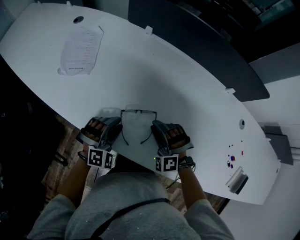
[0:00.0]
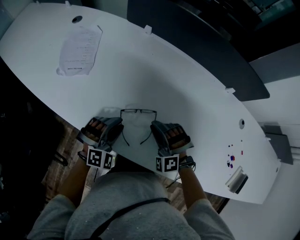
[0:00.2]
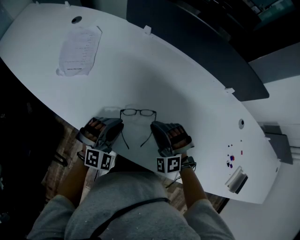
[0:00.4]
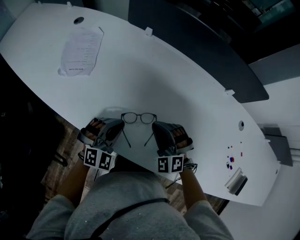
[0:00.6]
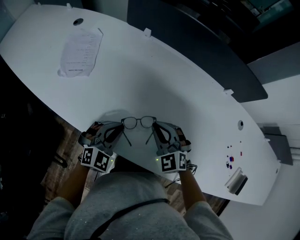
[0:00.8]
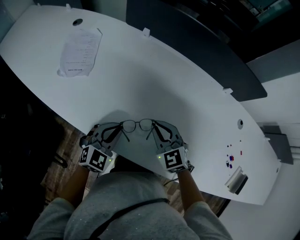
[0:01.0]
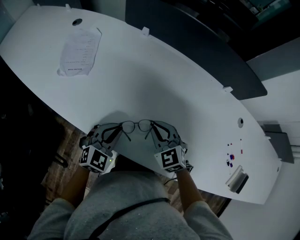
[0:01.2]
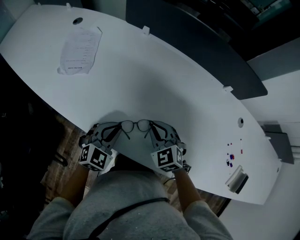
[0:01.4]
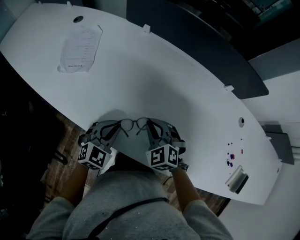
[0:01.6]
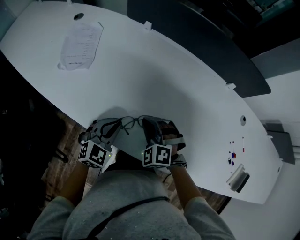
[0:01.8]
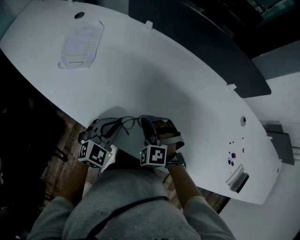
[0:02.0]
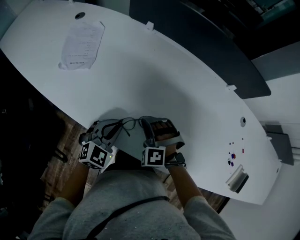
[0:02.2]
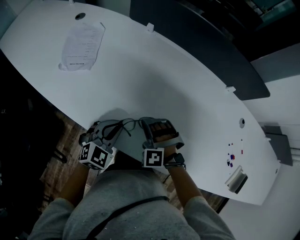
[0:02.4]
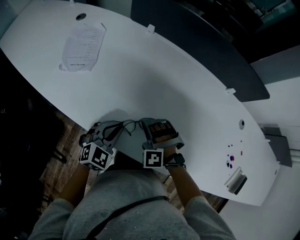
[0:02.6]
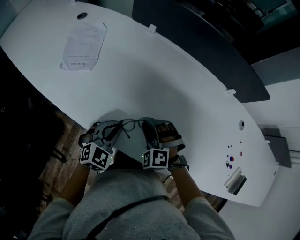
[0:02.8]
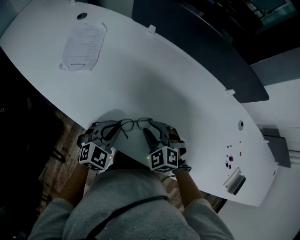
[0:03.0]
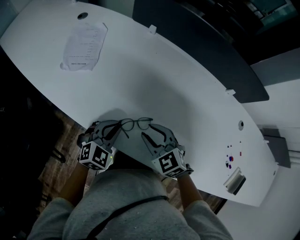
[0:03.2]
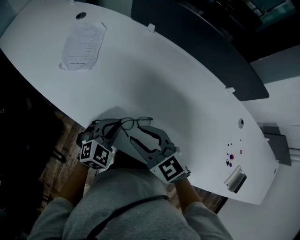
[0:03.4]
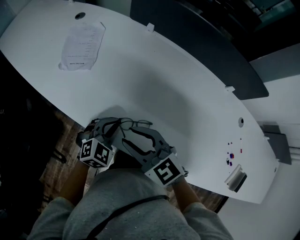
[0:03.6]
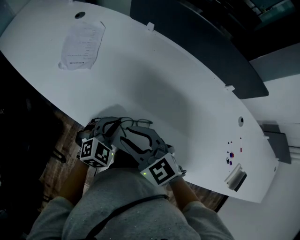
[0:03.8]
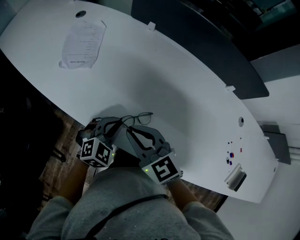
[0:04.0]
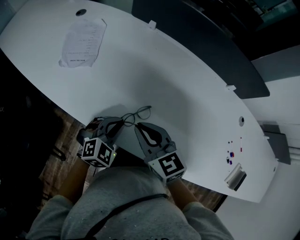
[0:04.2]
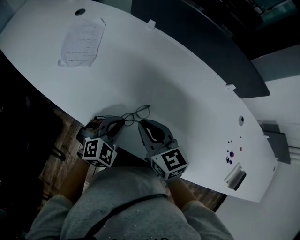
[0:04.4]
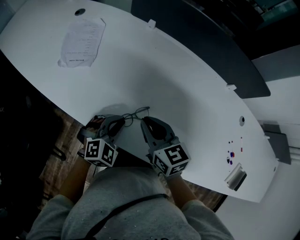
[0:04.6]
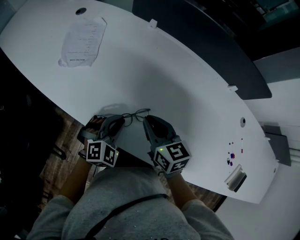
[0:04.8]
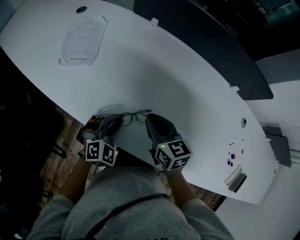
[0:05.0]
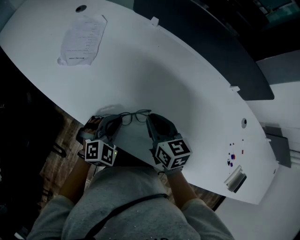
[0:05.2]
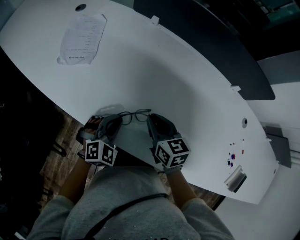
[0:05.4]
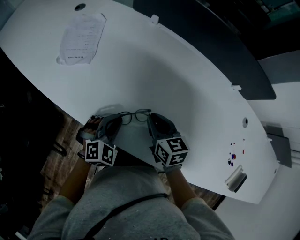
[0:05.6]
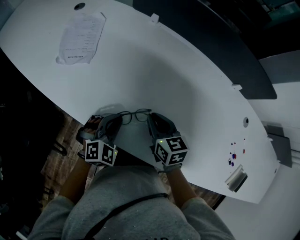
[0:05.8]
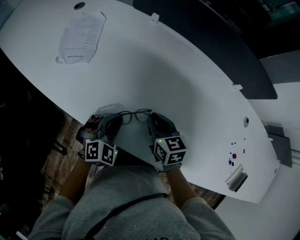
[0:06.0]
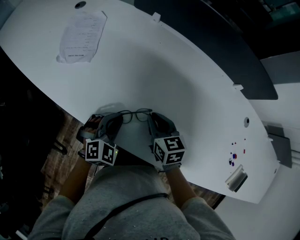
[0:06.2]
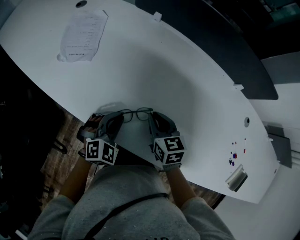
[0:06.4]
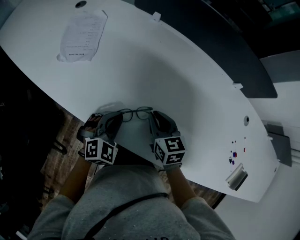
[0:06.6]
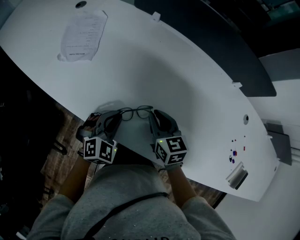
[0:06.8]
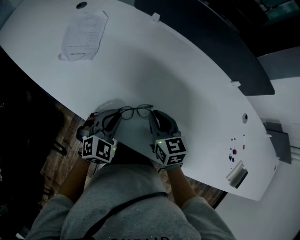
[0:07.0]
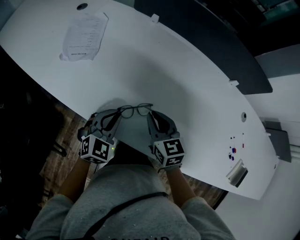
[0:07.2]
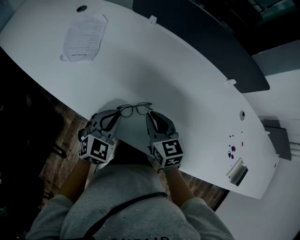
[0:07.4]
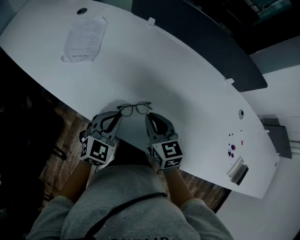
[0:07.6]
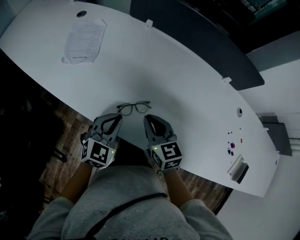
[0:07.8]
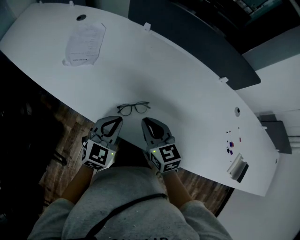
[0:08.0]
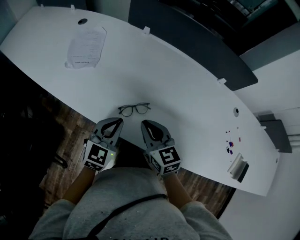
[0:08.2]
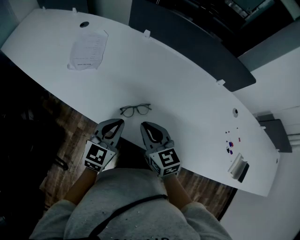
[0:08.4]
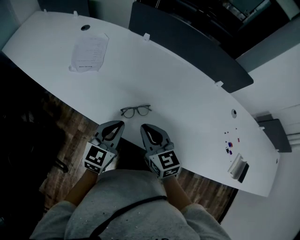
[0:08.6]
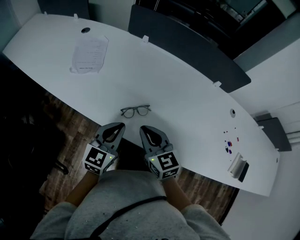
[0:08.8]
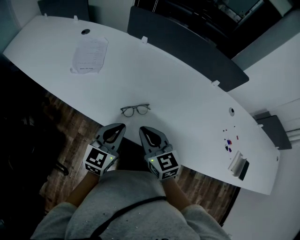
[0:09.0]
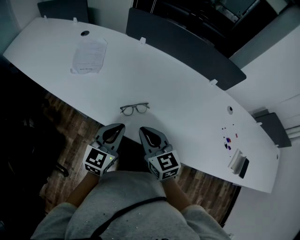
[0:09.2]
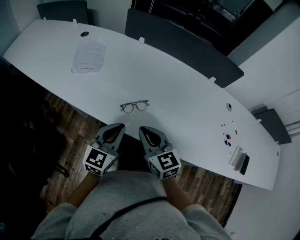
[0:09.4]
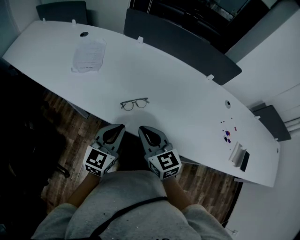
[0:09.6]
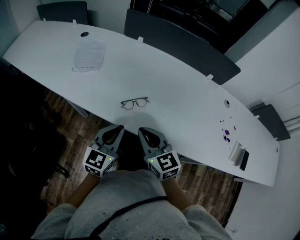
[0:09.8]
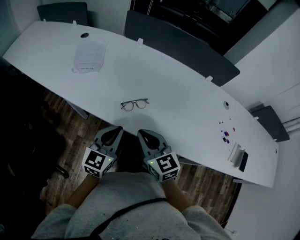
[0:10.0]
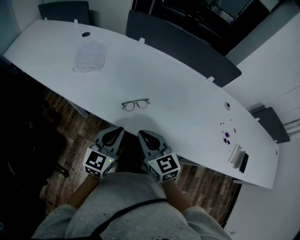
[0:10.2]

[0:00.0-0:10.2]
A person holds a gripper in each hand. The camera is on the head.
0:00.0 to 0:01.4: The left gripper changes its angle by roughly 40 degrees, and closes. Meanwhile the right gripper rotates around the line of its fingers by roughly 50 degrees, clockwise from behind, and closes up.
0:01.4 to 0:03.0: The right gripper opens up.
0:03.0 to 0:04.4: The right gripper shifts roughly 10 cm upward, rolls clockwise, seen from behind, by some 40 degrees, and closes.
0:04.4 to 0:05.8: The right gripper goes roughly 10 cm downward.
0:05.8 to 0:07.2: The grippers stay close to where they were, moving slightly.
0:07.2 to 0:08.8: The right gripper heads backward and upward, covering roughly 15 cm. The left gripper travels upward and backward by approximately 15 cm, and turns by roughly 30 degrees.
0:08.8 to 0:10.2: The two grippers go about 10 cm backward.

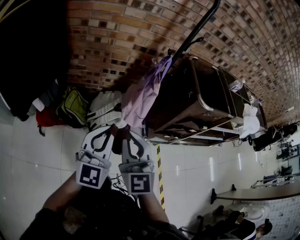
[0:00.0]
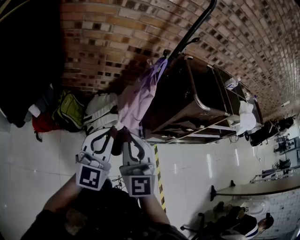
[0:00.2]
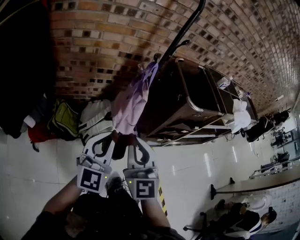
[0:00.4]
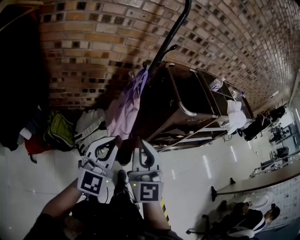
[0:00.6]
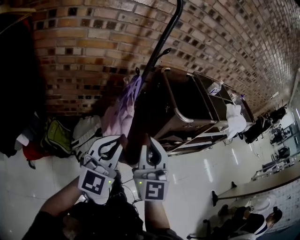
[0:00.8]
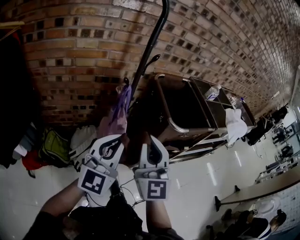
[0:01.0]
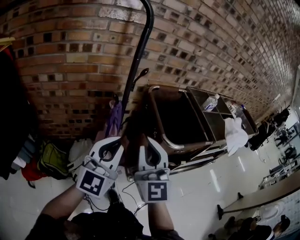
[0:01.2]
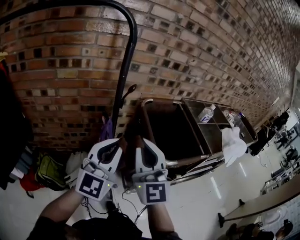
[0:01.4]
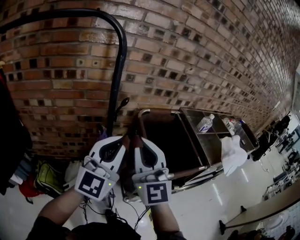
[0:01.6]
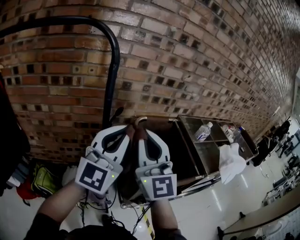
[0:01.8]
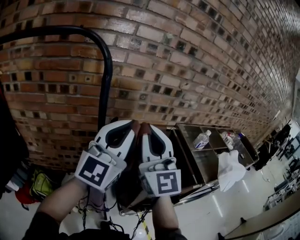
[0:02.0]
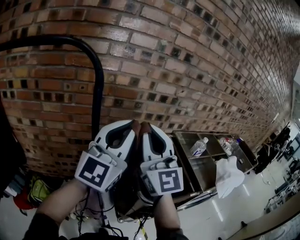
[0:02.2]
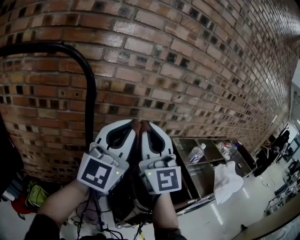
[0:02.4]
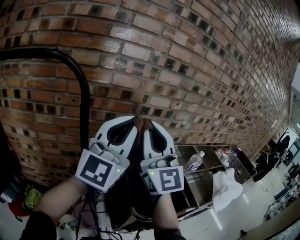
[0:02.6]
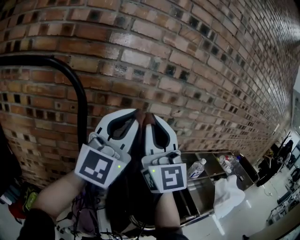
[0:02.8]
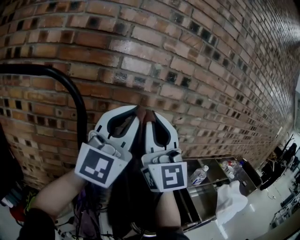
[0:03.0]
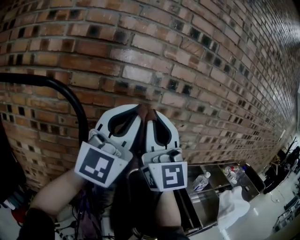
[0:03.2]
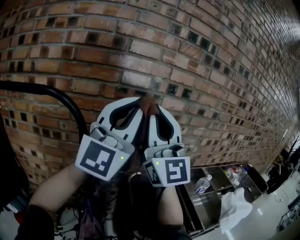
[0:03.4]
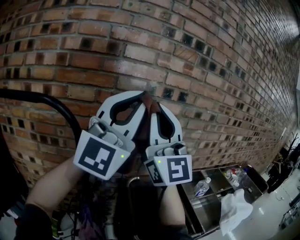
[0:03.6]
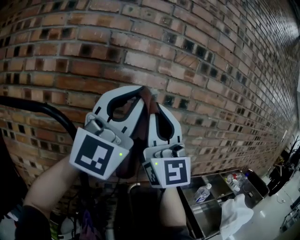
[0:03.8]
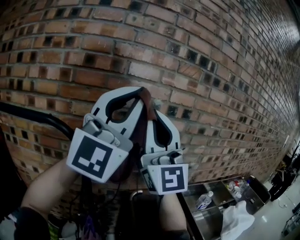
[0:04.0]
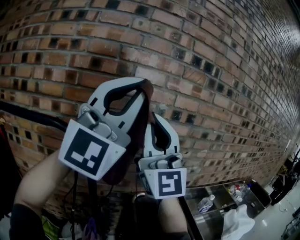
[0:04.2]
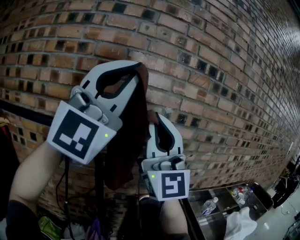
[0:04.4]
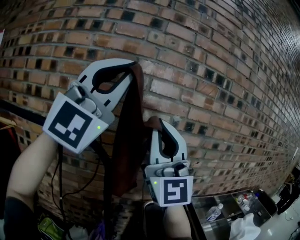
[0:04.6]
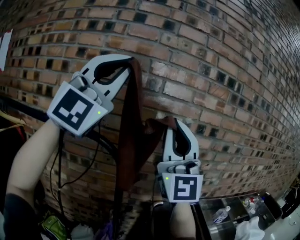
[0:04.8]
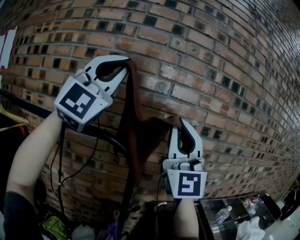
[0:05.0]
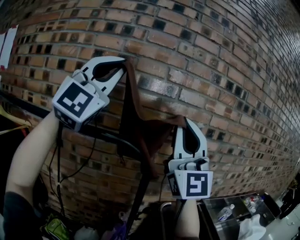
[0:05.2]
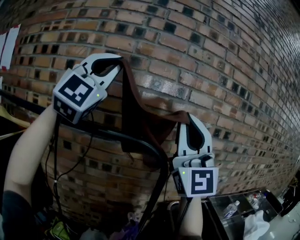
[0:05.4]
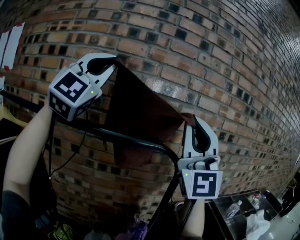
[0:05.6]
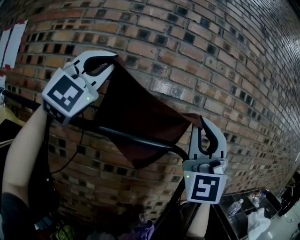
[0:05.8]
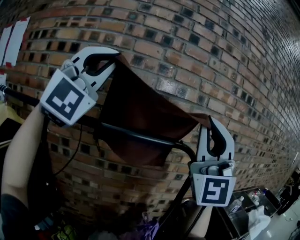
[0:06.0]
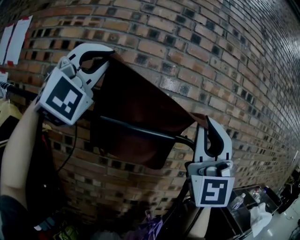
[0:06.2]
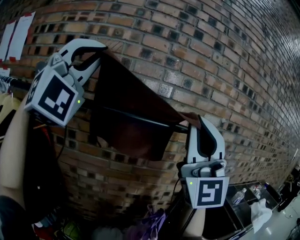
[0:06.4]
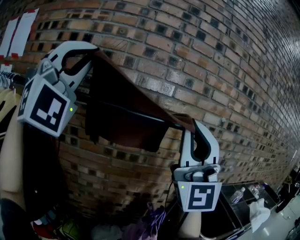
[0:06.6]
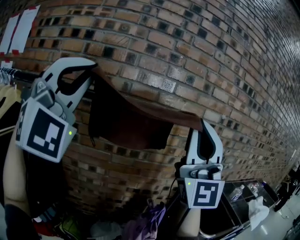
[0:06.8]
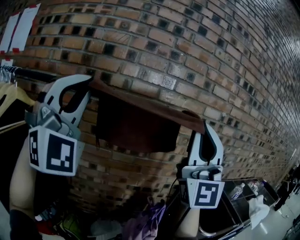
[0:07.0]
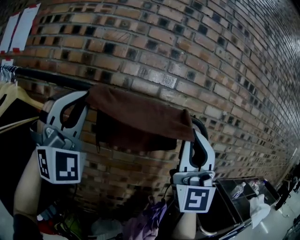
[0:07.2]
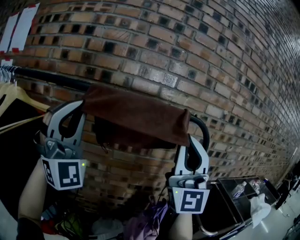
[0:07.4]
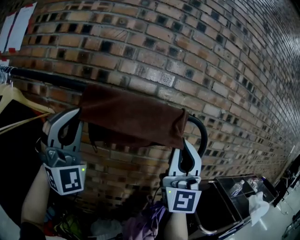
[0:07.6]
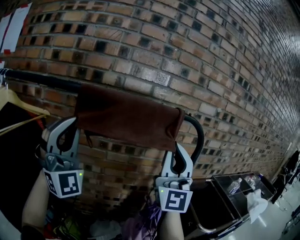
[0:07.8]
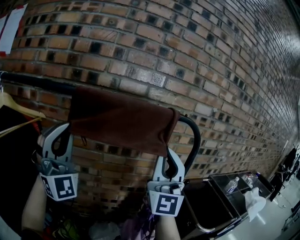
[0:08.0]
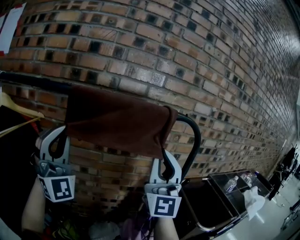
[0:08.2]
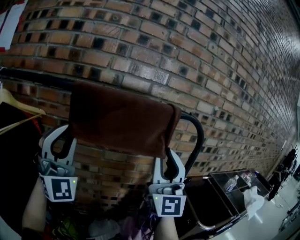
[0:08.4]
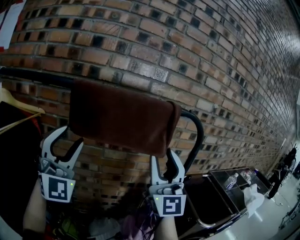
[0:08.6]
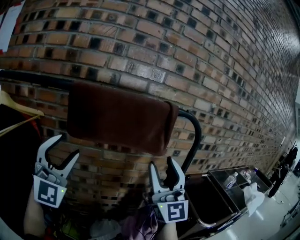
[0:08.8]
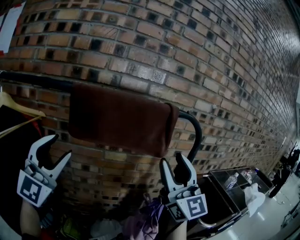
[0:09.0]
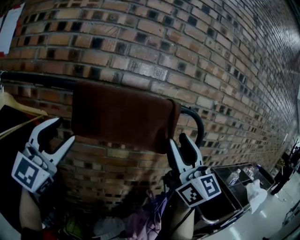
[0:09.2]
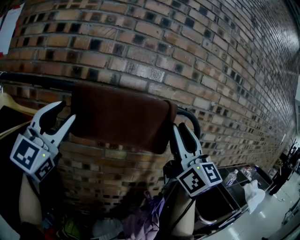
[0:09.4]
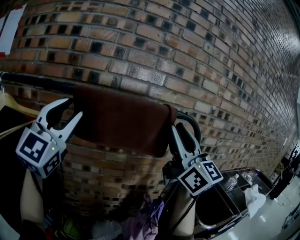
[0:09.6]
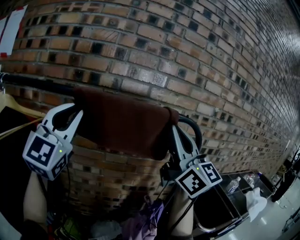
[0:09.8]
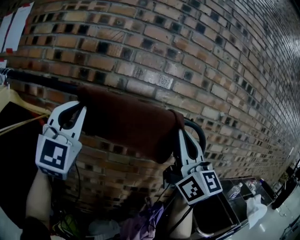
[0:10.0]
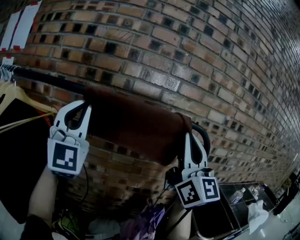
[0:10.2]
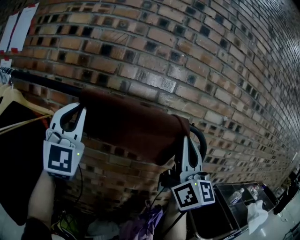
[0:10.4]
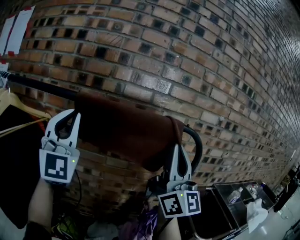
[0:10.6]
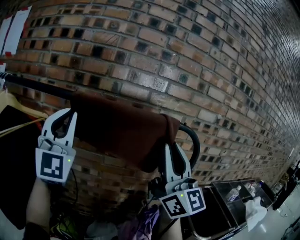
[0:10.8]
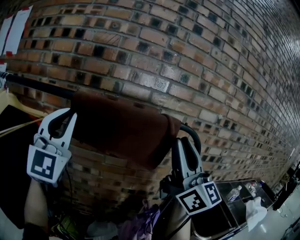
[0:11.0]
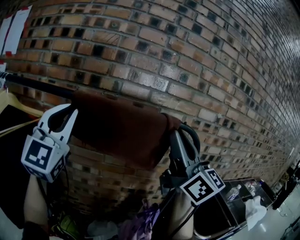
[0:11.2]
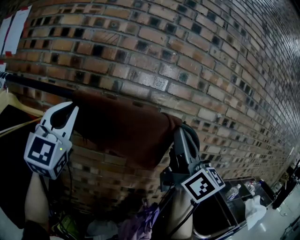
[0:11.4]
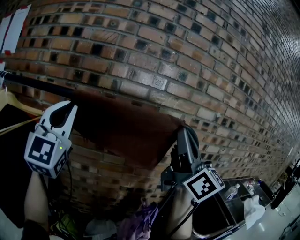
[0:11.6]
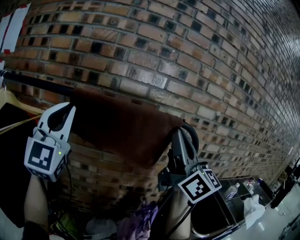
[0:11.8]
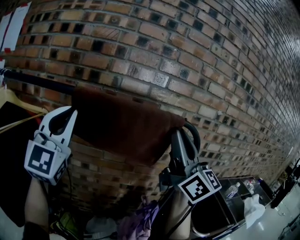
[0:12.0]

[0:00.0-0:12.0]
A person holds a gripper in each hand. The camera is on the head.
0:00.0 to 0:01.6: Both grippers move forward, to the right and upward, about 40 cm. The left gripper changes its angle by some 20 degrees.
0:01.6 to 0:03.0: Both grippers travel together upward and forward, roughly 30 cm. The left gripper rotates approximately 20 degrees; the right gripper rotates approximately 30 degrees.
0:03.0 to 0:04.4: The right gripper shifts some 15 cm upward and to the left, while the left gripper heads upward, covering some 20 cm, and swivels about 30 degrees.
0:04.4 to 0:06.0: The right gripper is displaced to the left by approximately 20 cm, and changes its angle by some 30 degrees. Meanwhile the left gripper is displaced to the left by about 40 cm, and changes its angle by roughly 30 degrees.
0:06.0 to 0:07.6: The left gripper moves downward and to the left, some 25 cm, and swivels about 30 degrees; the right gripper goes about 15 cm downward.
0:07.6 to 0:09.0: The grippers both shift downward by some 5 cm. The right gripper turns by approximately 20 degrees, and opens. The left gripper twists roughly 40 degrees counterclockwise, seen from behind, and opens.
0:09.0 to 0:10.4: Both grippers travel together upward, roughly 10 cm. The left gripper rotates some 20 degrees, and closes its fingers; the right gripper closes up.
0:10.4 to 0:12.0: There are only small adjustments of the grippers.

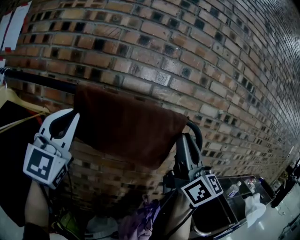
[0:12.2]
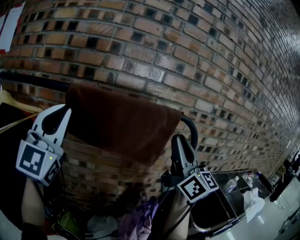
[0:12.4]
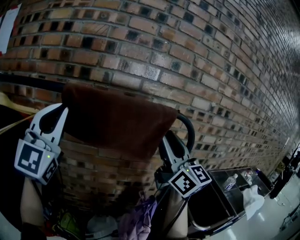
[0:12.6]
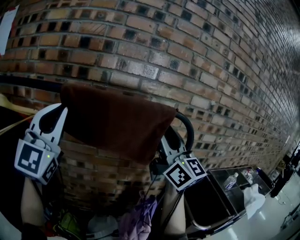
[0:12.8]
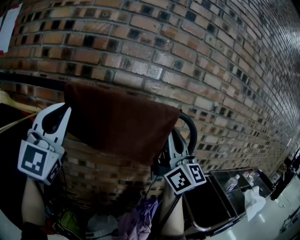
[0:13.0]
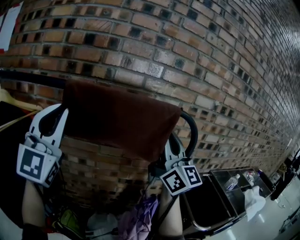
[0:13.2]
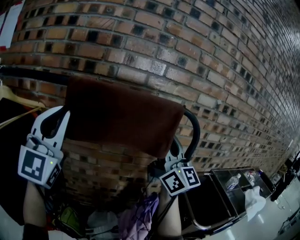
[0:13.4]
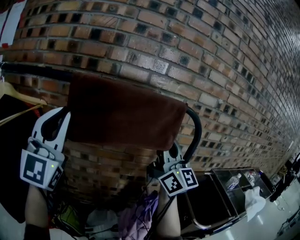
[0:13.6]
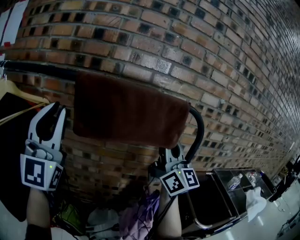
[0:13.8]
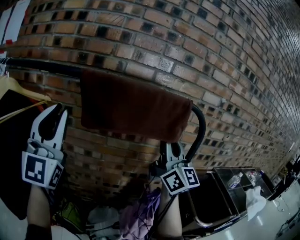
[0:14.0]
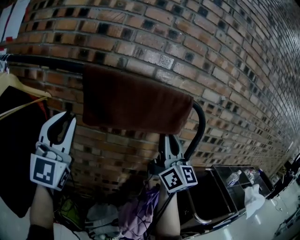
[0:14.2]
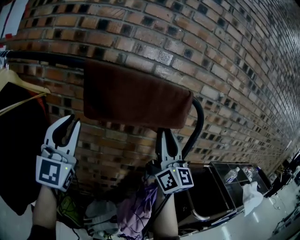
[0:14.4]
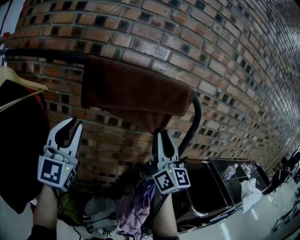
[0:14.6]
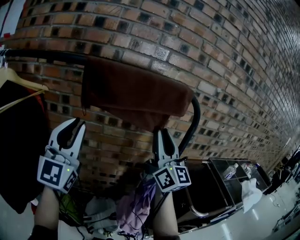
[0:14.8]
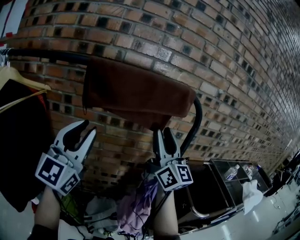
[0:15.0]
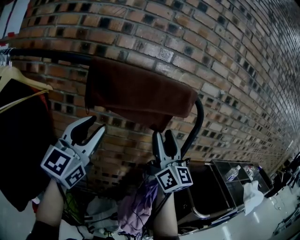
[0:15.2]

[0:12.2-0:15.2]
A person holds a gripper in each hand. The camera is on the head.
0:12.2 to 0:13.8: The left gripper shifts by some 5 cm; the right gripper is displaced downward by roughly 5 cm, and opens, then closes again.
0:13.8 to 0:15.2: The right gripper is displaced downward by about 5 cm, and opens. Meanwhile the left gripper moves to the right and downward, some 15 cm, and turns by approximately 30 degrees.
